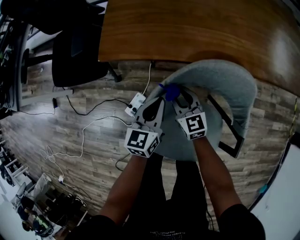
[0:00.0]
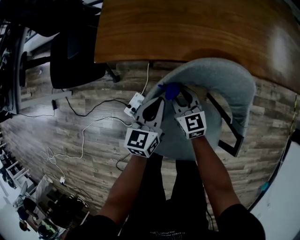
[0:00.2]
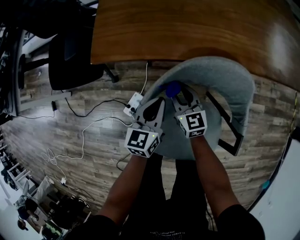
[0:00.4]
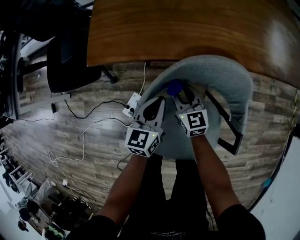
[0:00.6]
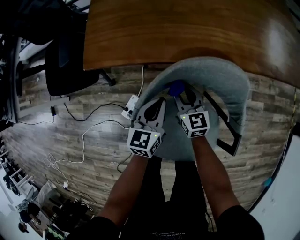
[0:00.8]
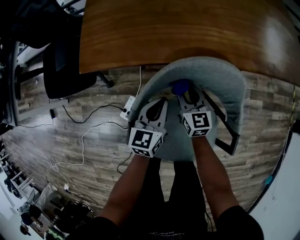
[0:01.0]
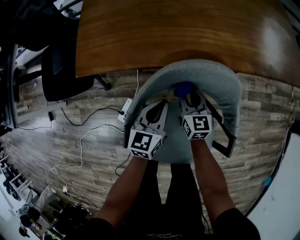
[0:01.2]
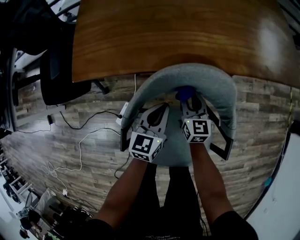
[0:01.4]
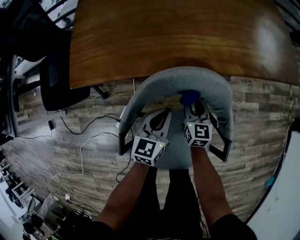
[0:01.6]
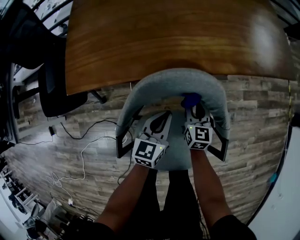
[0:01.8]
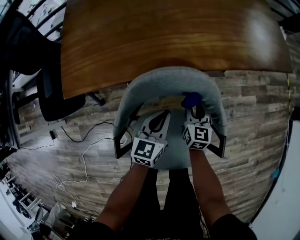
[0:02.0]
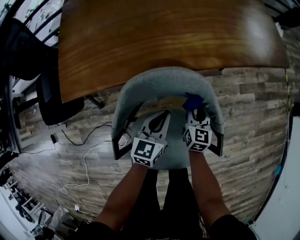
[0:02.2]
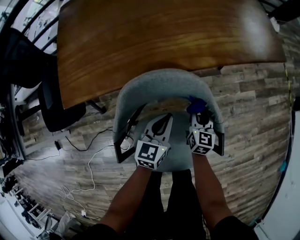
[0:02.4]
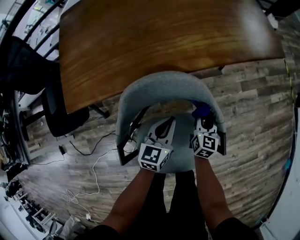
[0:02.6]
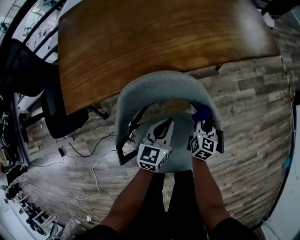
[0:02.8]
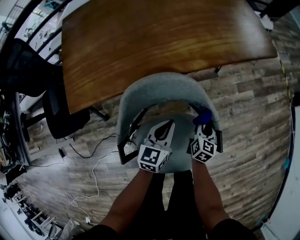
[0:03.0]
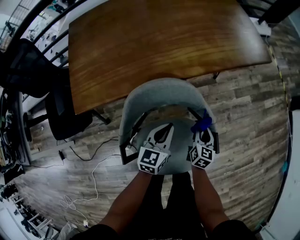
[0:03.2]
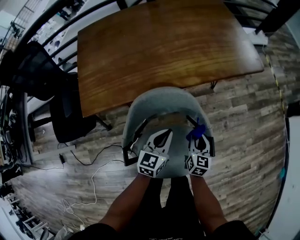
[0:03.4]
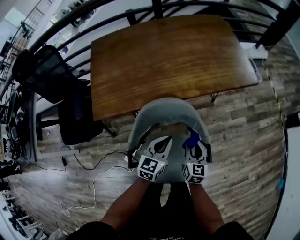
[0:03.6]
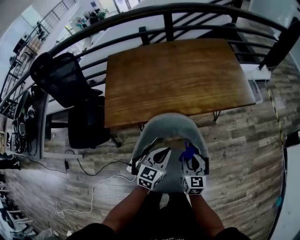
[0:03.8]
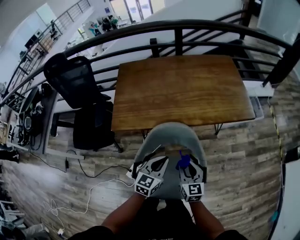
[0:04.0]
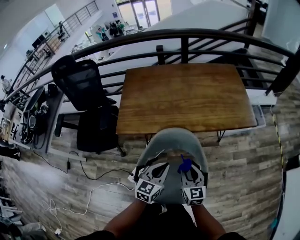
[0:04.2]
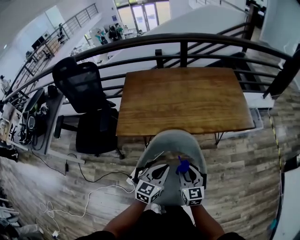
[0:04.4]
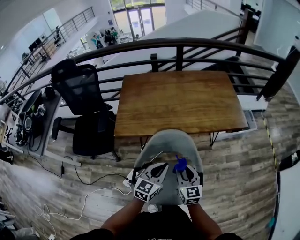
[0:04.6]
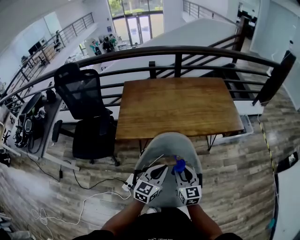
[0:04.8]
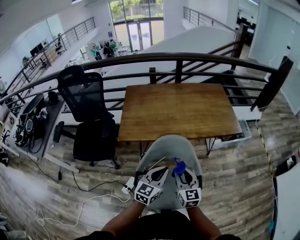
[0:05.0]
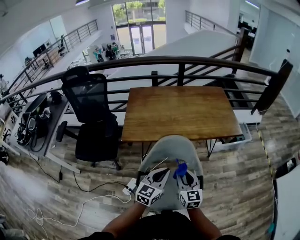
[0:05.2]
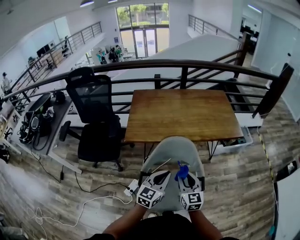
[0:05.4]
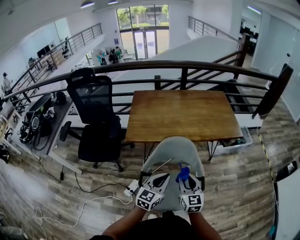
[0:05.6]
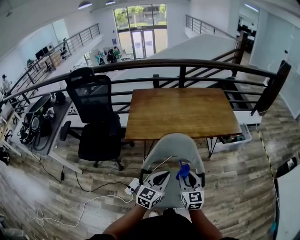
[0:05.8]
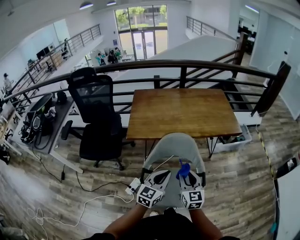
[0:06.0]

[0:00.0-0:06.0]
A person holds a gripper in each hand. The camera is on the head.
0:00.0 to 0:01.6: The two grippers go about 15 cm to the right. The right gripper swivels approximately 30 degrees.
0:01.6 to 0:03.0: The right gripper shifts approximately 15 cm to the right, and changes its angle by approximately 30 degrees; the left gripper shifts roughly 10 cm to the right.
0:03.0 to 0:04.4: The grippers both shift upward by some 25 cm. The right gripper turns by some 50 degrees.
0:04.4 to 0:06.0: Both grippers travel together backward and upward, approximately 15 cm.

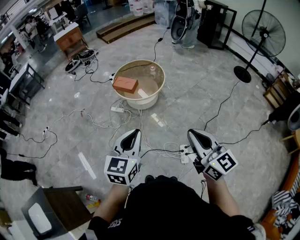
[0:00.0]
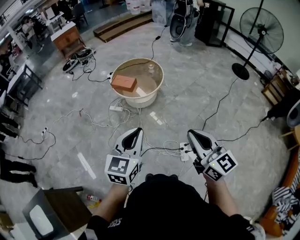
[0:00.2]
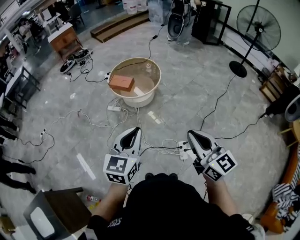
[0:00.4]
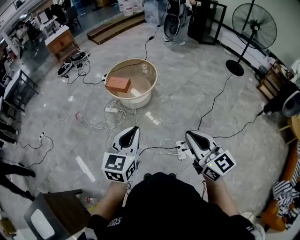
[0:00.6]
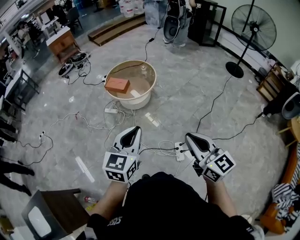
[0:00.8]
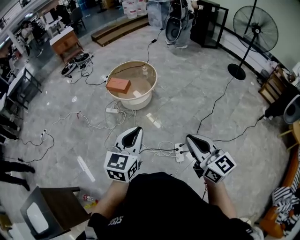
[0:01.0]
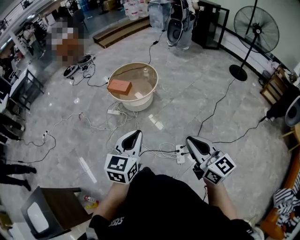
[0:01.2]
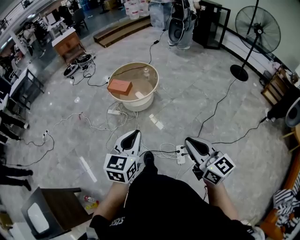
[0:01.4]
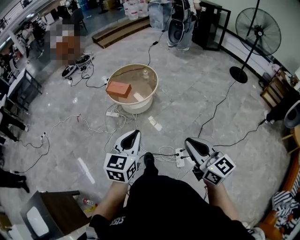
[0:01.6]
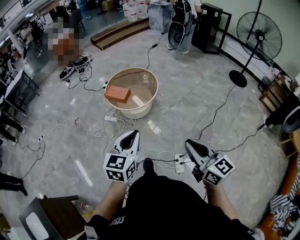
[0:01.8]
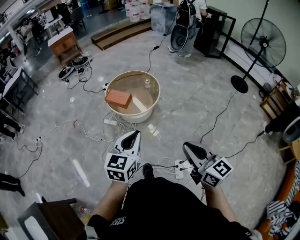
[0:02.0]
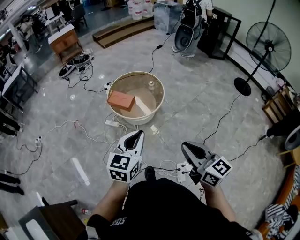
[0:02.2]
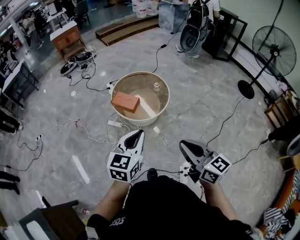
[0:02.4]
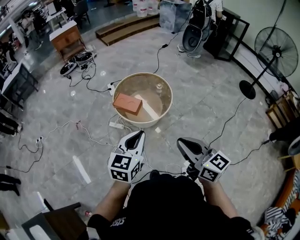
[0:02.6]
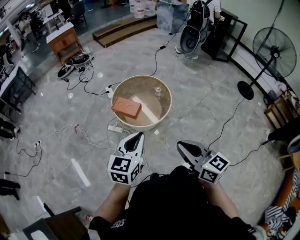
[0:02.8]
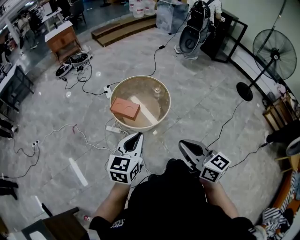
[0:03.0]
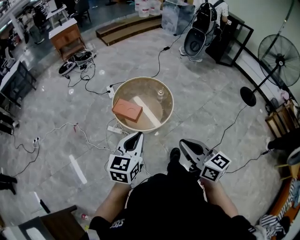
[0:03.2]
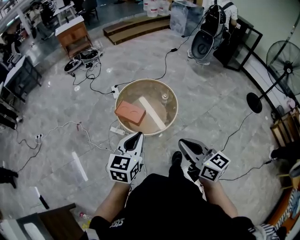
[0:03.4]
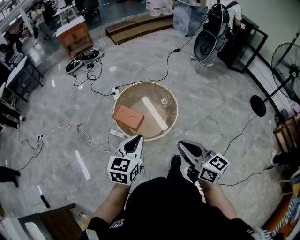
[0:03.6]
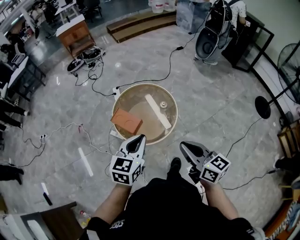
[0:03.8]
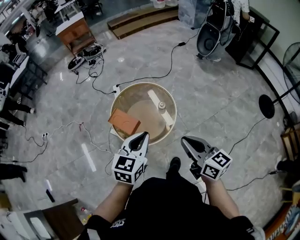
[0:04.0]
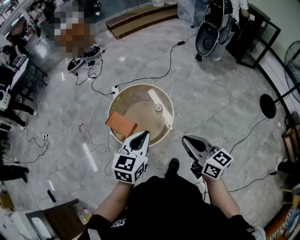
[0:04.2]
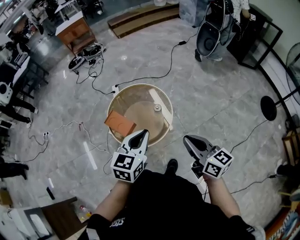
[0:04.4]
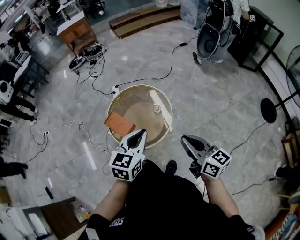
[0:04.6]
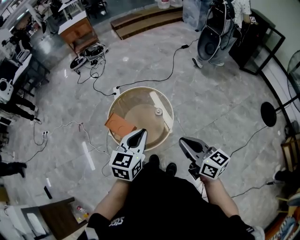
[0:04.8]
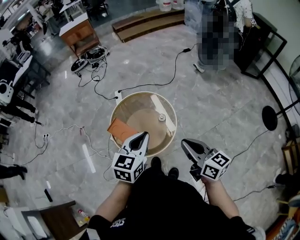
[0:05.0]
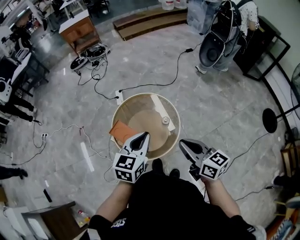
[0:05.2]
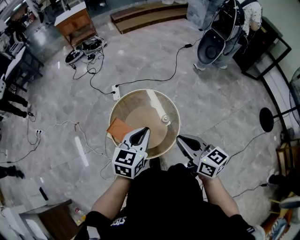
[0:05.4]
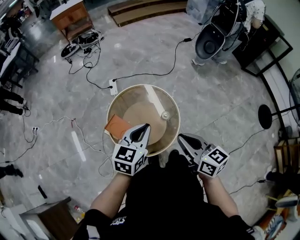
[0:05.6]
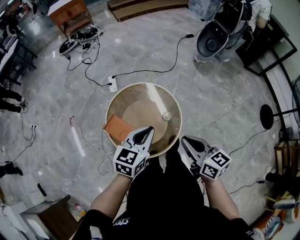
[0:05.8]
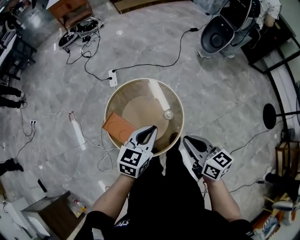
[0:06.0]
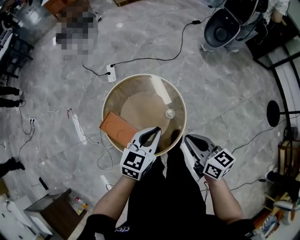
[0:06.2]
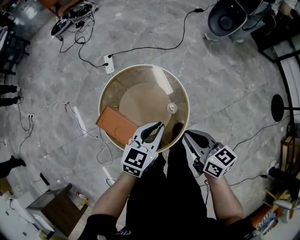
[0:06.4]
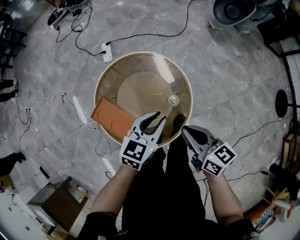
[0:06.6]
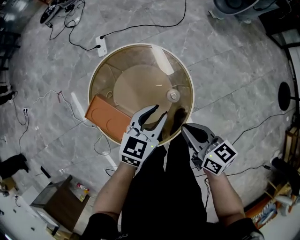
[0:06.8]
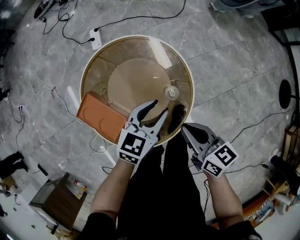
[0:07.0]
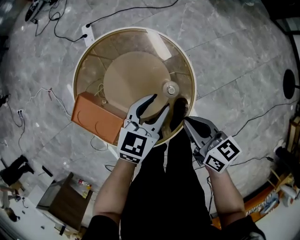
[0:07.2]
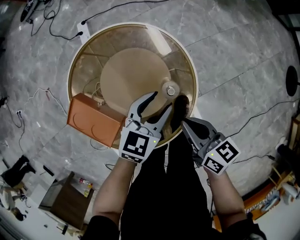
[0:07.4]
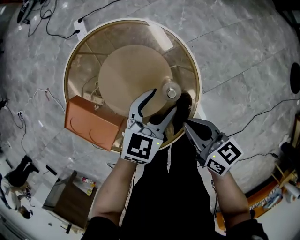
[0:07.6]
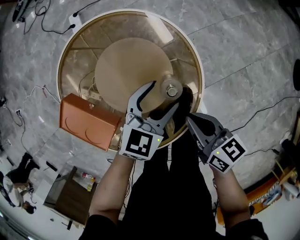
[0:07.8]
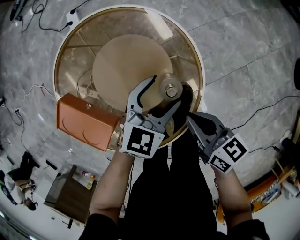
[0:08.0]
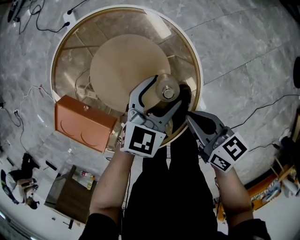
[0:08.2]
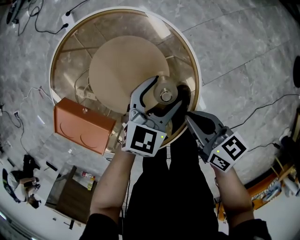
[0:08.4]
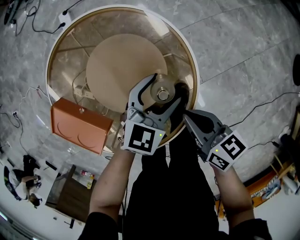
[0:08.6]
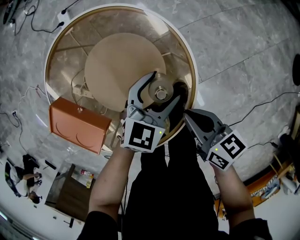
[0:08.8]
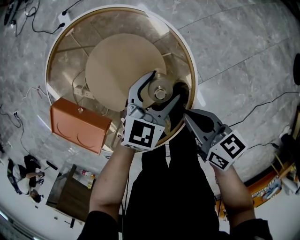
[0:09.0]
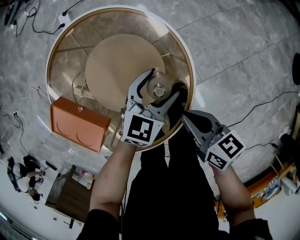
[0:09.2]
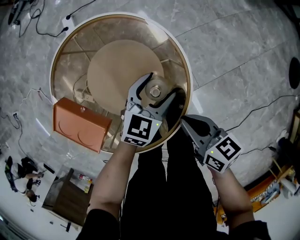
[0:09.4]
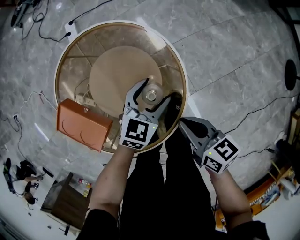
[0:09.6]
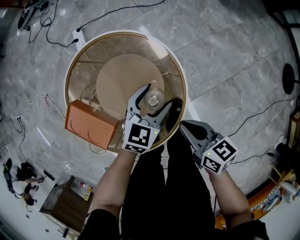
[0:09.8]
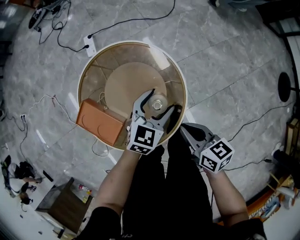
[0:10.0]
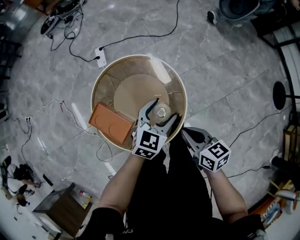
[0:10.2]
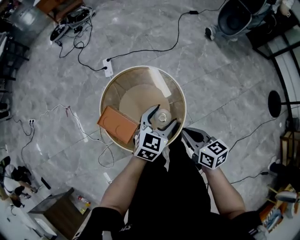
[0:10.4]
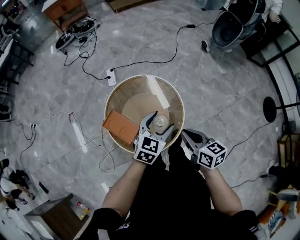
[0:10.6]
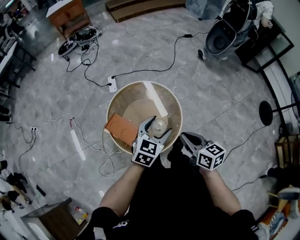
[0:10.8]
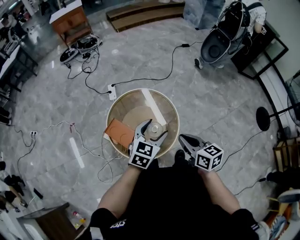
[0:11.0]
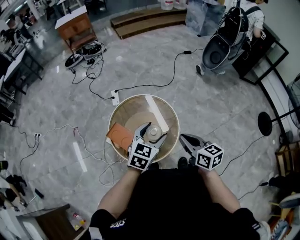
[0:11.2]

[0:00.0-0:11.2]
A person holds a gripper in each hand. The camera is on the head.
0:00.0 to 0:01.6: Both grippers move to the right, some 5 cm.
0:01.6 to 0:03.2: The two grippers travel together, forward, about 40 cm.
0:03.2 to 0:04.8: The right gripper is displaced forward and to the right by roughly 40 cm. The left gripper goes some 35 cm to the right and forward.
0:04.8 to 0:06.4: The two grippers go roughly 35 cm forward and downward.
0:06.4 to 0:08.0: The grippers both shift downward by roughly 35 cm. The left gripper opens.
0:08.0 to 0:09.6: The grippers make only small movements.
0:09.6 to 0:11.2: The left gripper heads upward and backward, covering about 50 cm. The right gripper shifts some 40 cm upward, and changes its angle by some 20 degrees.

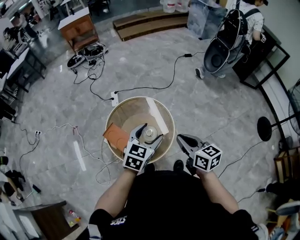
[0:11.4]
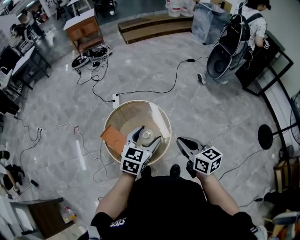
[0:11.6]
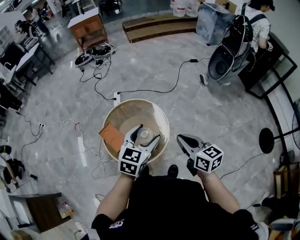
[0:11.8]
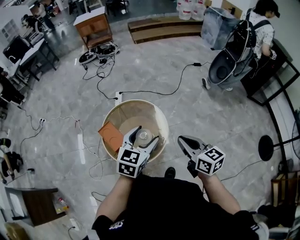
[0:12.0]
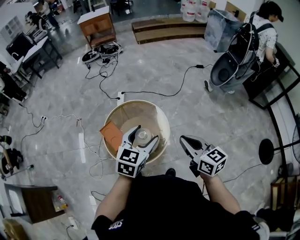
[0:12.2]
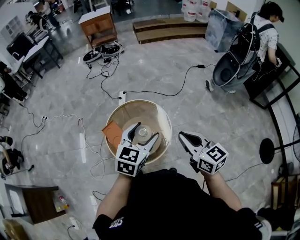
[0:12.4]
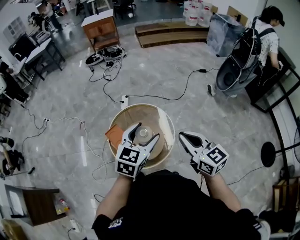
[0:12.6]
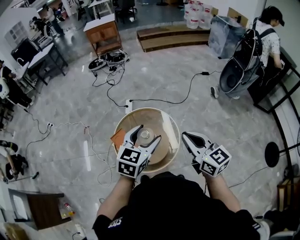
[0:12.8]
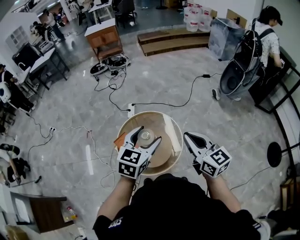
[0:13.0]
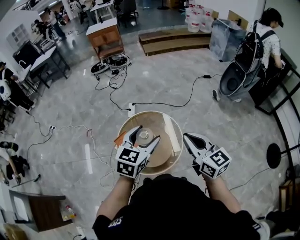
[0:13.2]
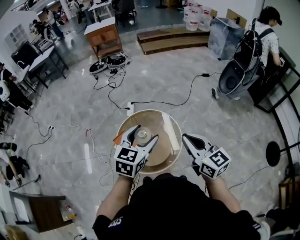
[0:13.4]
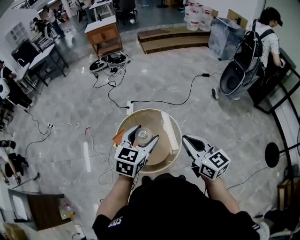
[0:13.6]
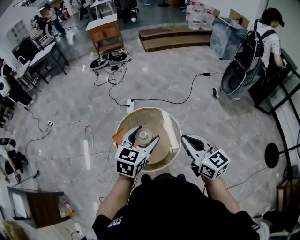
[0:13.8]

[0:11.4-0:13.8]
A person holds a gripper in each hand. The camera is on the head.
0:11.4 to 0:12.6: The grippers both shift upward by approximately 10 cm. The right gripper changes its angle by approximately 30 degrees.
0:12.6 to 0:13.8: The left gripper travels to the left by approximately 5 cm.

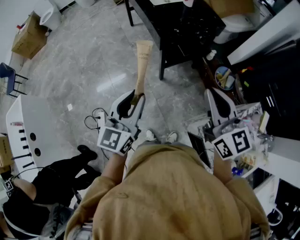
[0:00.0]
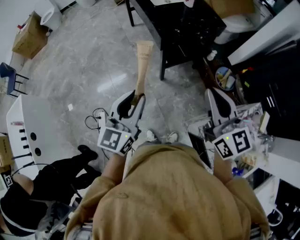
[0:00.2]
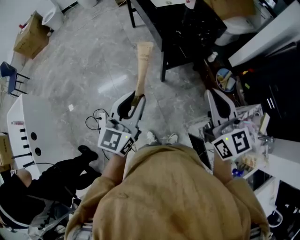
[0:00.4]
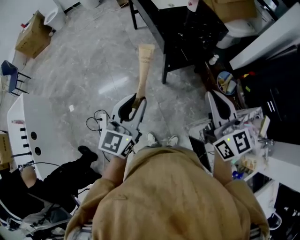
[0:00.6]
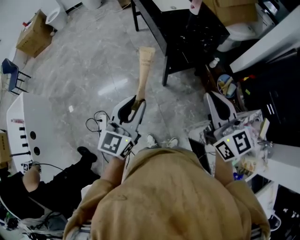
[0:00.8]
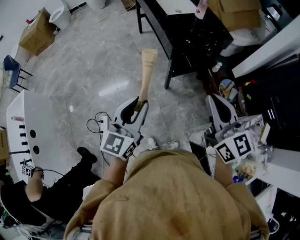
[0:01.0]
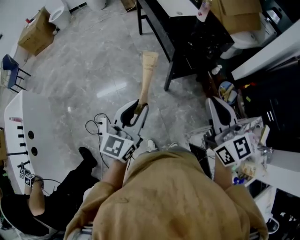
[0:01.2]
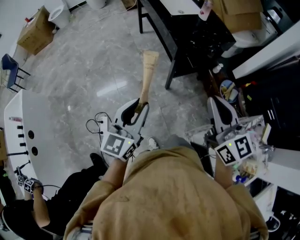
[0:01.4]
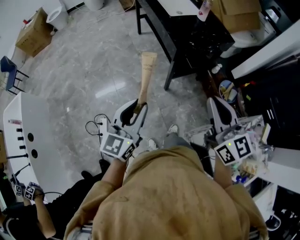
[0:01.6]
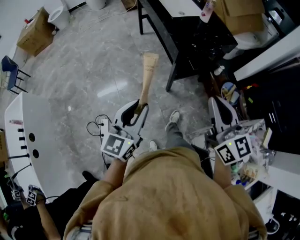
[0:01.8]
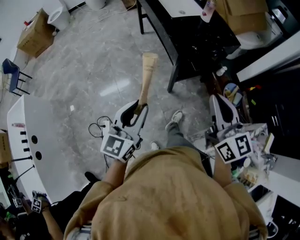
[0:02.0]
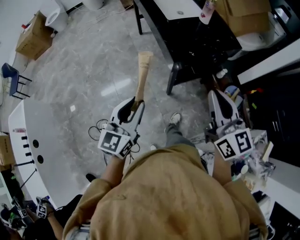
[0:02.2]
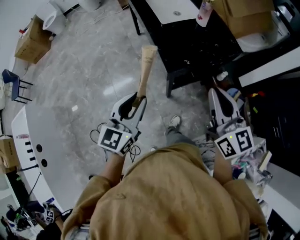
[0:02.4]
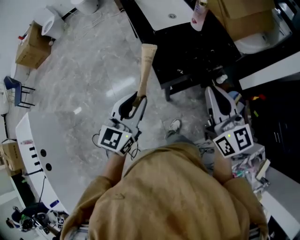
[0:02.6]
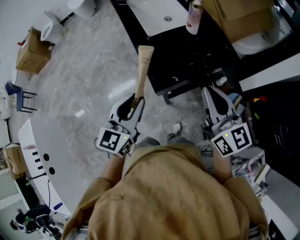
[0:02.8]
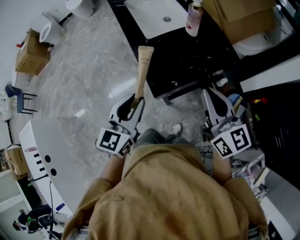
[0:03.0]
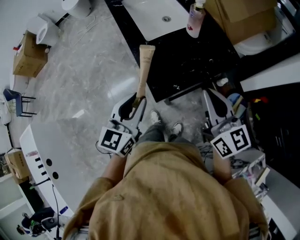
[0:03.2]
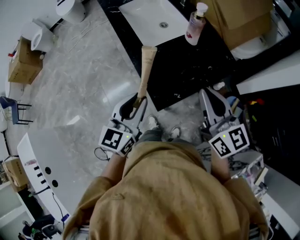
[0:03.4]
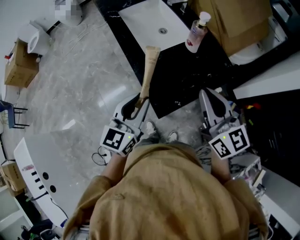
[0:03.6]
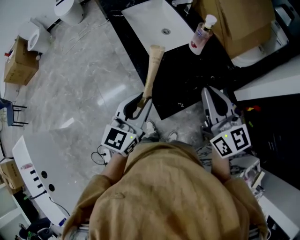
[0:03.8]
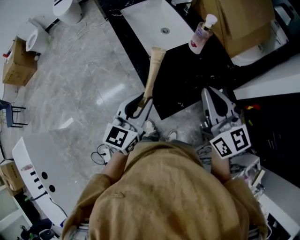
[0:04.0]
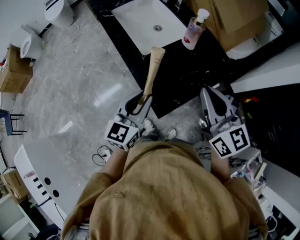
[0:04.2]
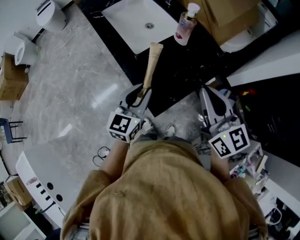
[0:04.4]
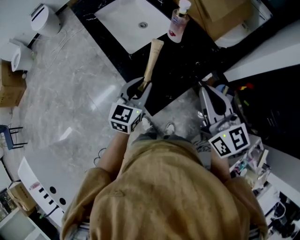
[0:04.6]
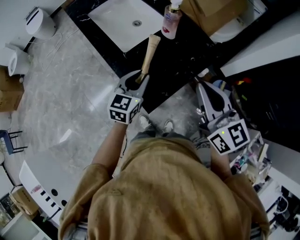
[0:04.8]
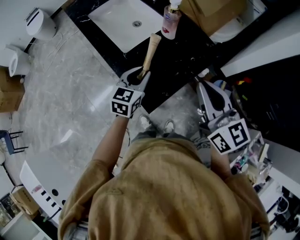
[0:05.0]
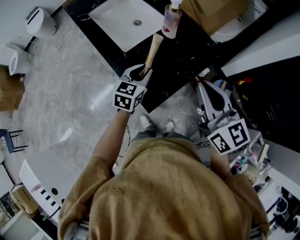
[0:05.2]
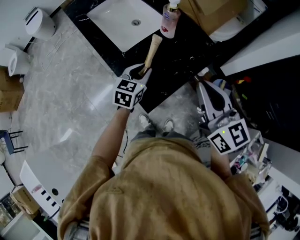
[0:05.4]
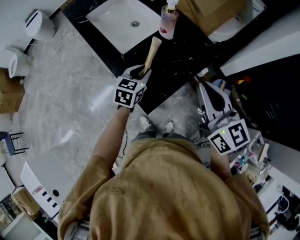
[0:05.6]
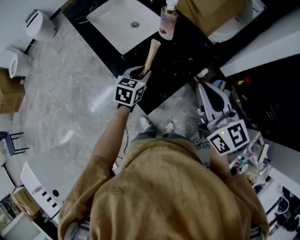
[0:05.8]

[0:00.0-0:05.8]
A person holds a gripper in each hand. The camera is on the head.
0:00.0 to 0:01.4: The two grippers go some 10 cm to the left.
0:01.4 to 0:02.8: Both grippers travel together forward, some 35 cm.
0:02.8 to 0:04.4: The left gripper heads forward, covering about 15 cm. Meanwhile the right gripper goes roughly 10 cm forward.
0:04.4 to 0:05.8: The left gripper moves downward, forward and to the right, approximately 15 cm, and rotates roughly 20 degrees.
